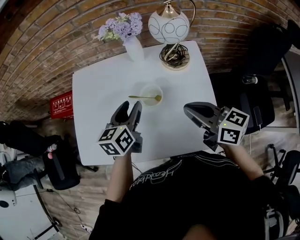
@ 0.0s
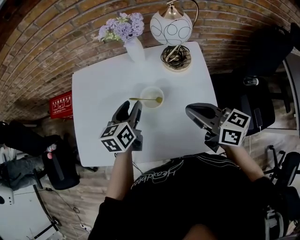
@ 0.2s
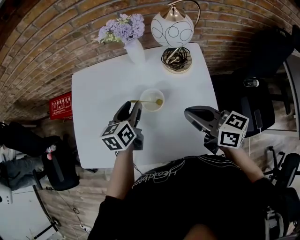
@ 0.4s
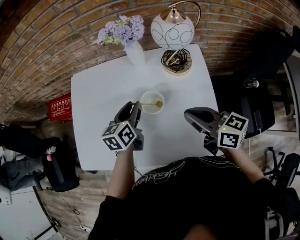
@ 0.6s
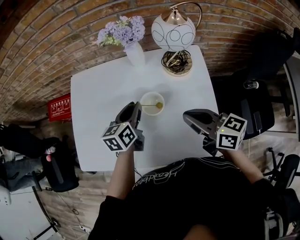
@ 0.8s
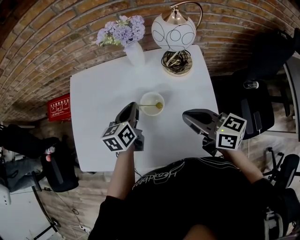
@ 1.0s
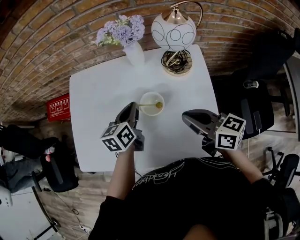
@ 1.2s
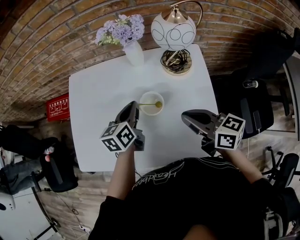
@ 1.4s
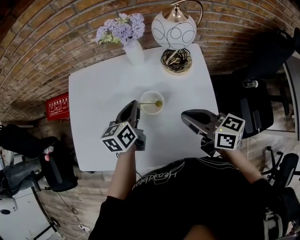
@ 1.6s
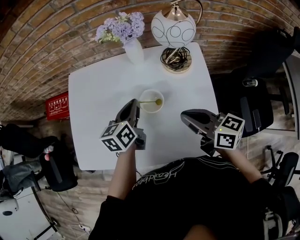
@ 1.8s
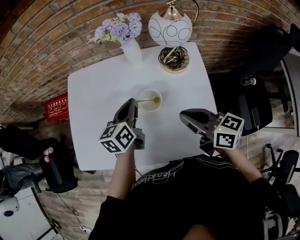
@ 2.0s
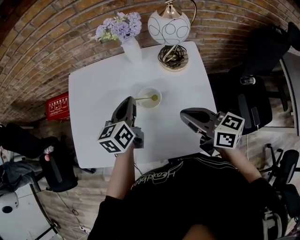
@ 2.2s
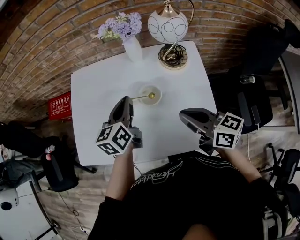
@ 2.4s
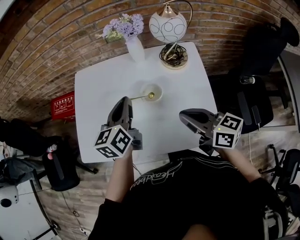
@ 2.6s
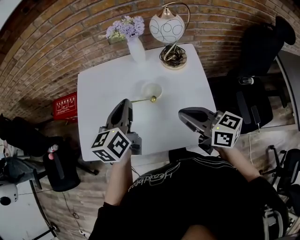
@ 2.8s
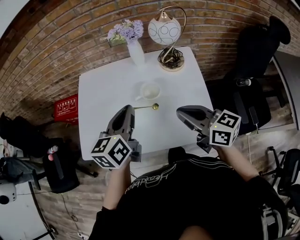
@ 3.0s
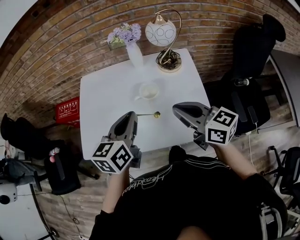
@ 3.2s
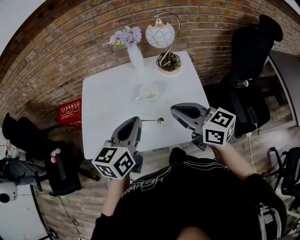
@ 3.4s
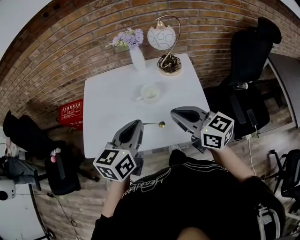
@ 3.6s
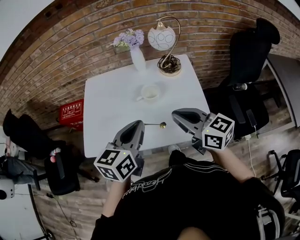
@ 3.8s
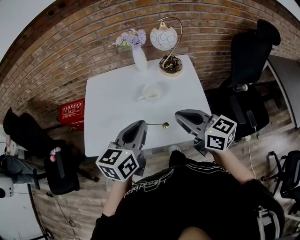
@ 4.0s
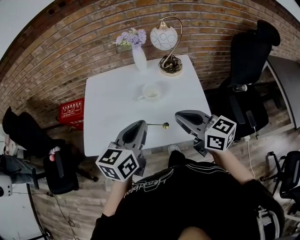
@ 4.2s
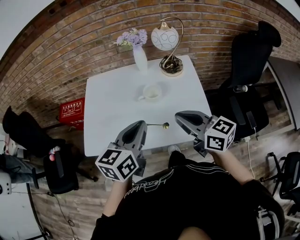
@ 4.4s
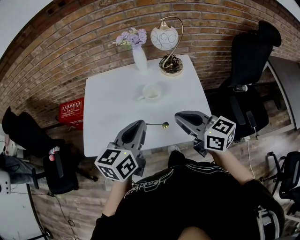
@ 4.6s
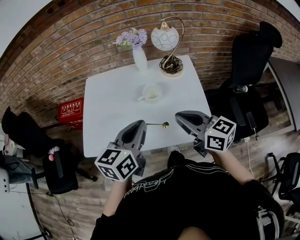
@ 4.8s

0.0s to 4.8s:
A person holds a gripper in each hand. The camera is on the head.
0.0s to 1.6s: The left gripper moves some 5 cm, and closes.
1.6s to 3.2s: The right gripper heads backward and upward, covering about 15 cm; the left gripper shifts roughly 20 cm backward and upward.
3.2s to 4.8s: The left gripper shifts some 5 cm backward.

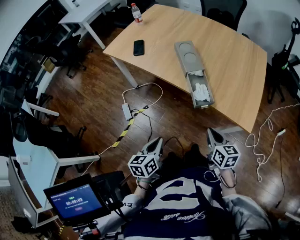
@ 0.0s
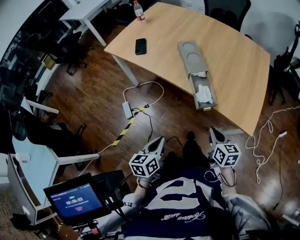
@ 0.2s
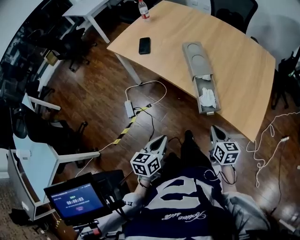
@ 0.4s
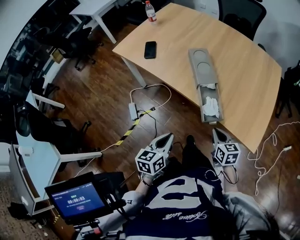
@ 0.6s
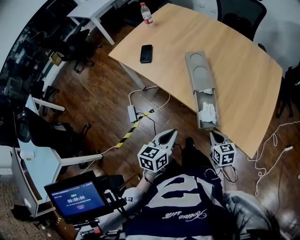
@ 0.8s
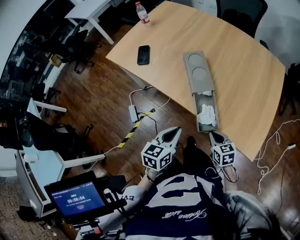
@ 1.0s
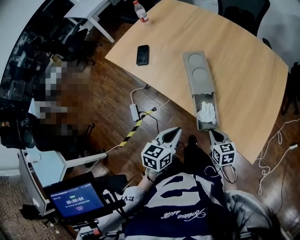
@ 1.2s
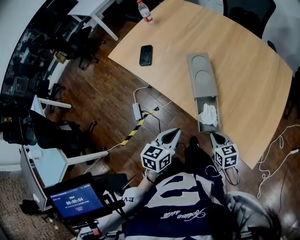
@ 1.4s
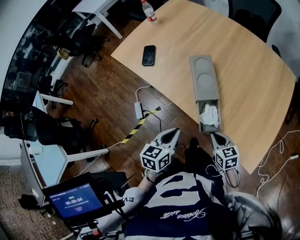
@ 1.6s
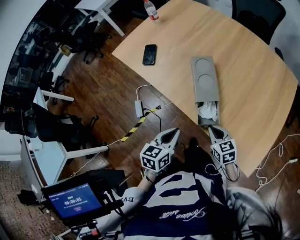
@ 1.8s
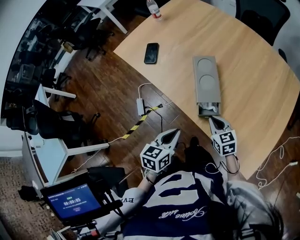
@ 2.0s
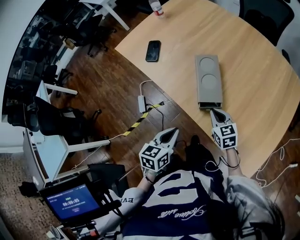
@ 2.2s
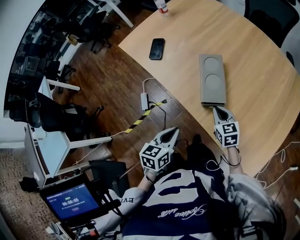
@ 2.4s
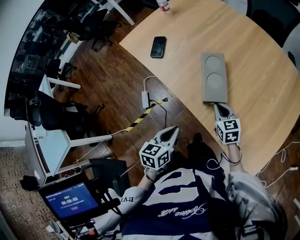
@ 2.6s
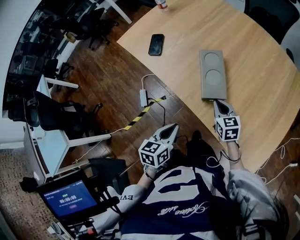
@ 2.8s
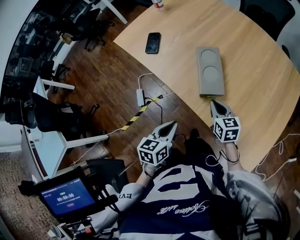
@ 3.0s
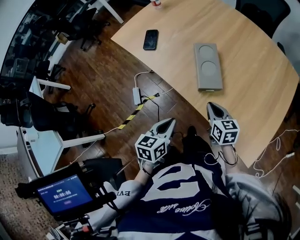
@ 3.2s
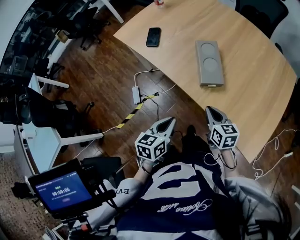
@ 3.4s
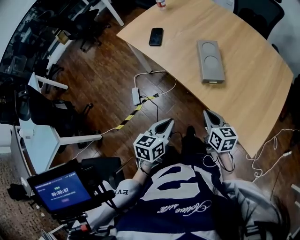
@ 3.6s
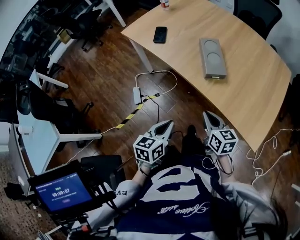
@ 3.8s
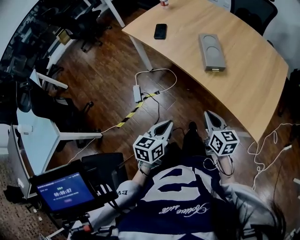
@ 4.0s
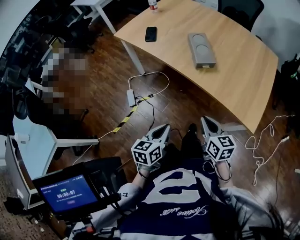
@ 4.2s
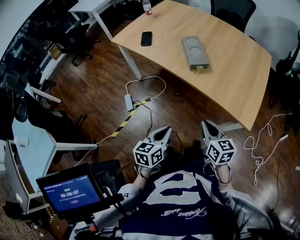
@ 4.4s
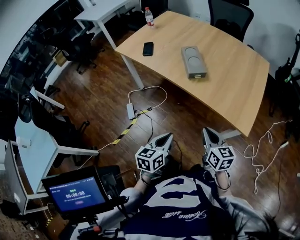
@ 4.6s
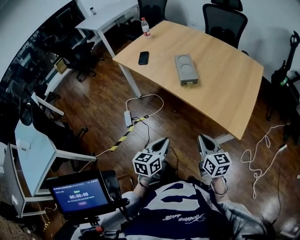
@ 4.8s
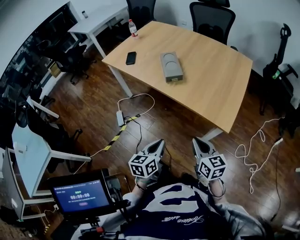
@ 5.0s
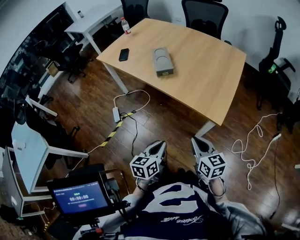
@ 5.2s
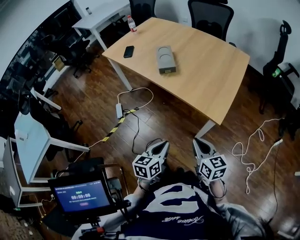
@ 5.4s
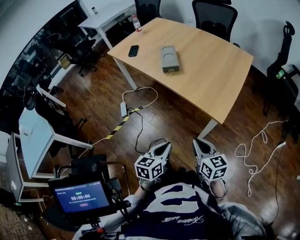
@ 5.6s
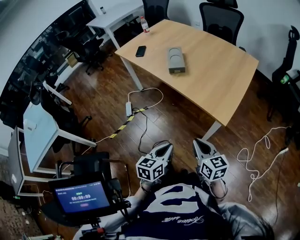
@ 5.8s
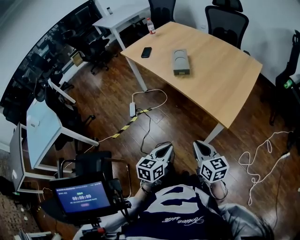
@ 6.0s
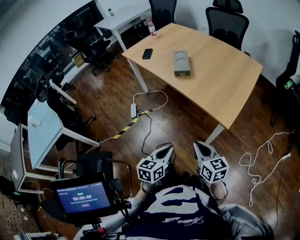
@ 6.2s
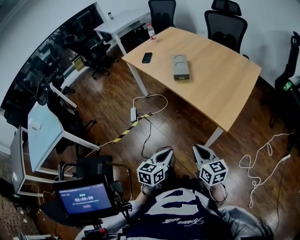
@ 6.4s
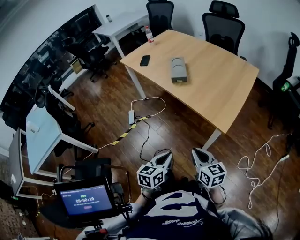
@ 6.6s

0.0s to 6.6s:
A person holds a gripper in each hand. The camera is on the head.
0.0s to 1.6s: The left gripper is displaced forward by about 25 cm; the right gripper heads forward and downward, covering approximately 20 cm, and swivels some 20 degrees.
1.6s to 3.2s: The right gripper travels forward by some 10 cm.
3.2s to 5.0s: The two grippers go approximately 35 cm backward.
5.0s to 6.6s: The right gripper heads backward, covering roughly 10 cm. Meanwhile the left gripper heads backward and to the right, covering some 15 cm.

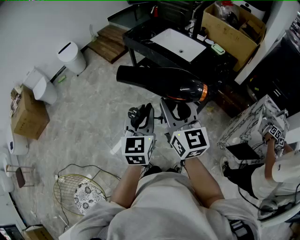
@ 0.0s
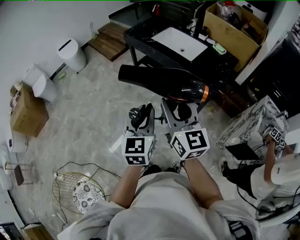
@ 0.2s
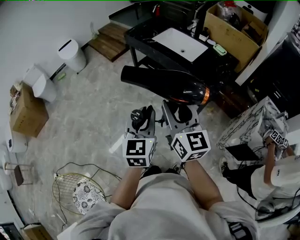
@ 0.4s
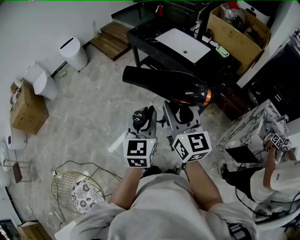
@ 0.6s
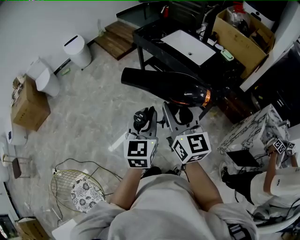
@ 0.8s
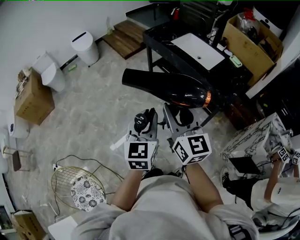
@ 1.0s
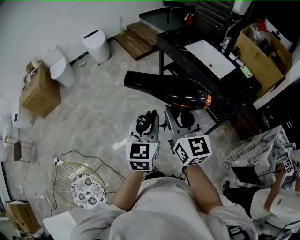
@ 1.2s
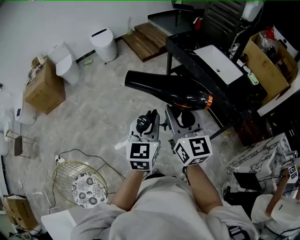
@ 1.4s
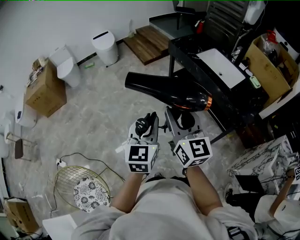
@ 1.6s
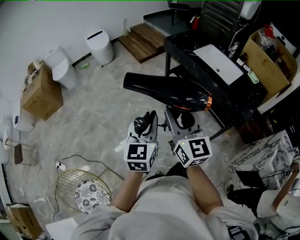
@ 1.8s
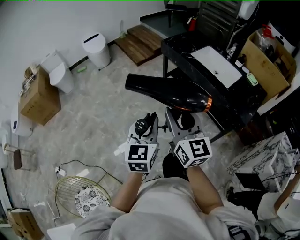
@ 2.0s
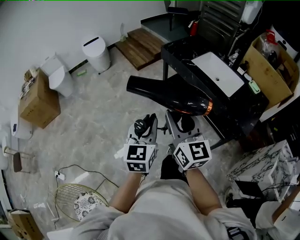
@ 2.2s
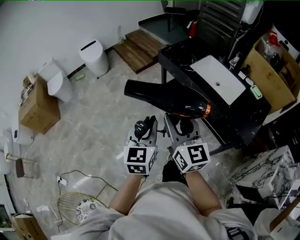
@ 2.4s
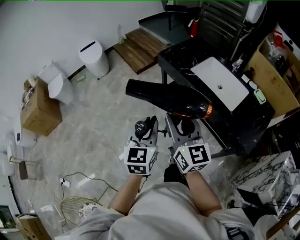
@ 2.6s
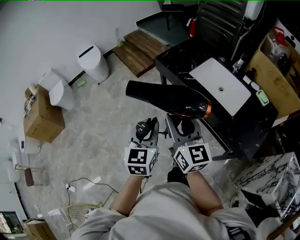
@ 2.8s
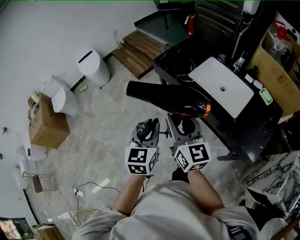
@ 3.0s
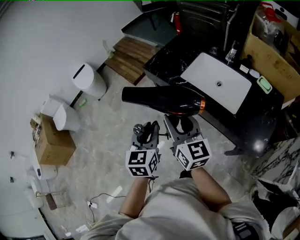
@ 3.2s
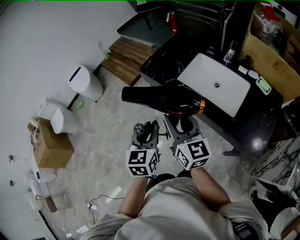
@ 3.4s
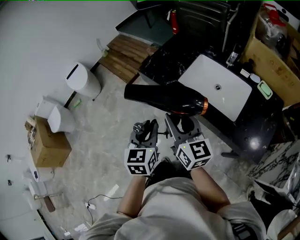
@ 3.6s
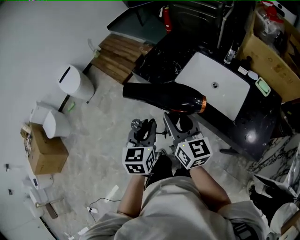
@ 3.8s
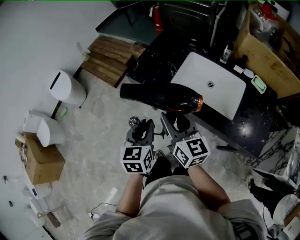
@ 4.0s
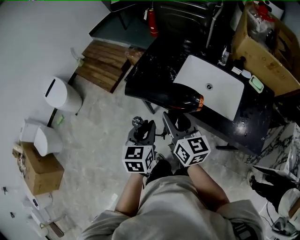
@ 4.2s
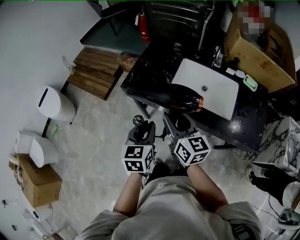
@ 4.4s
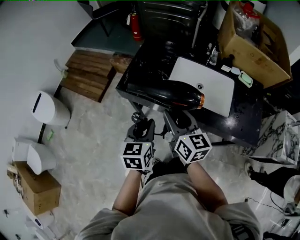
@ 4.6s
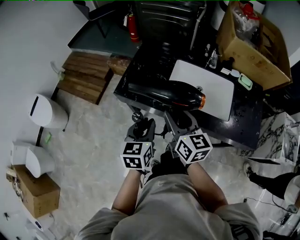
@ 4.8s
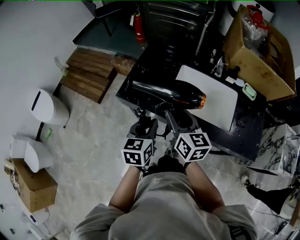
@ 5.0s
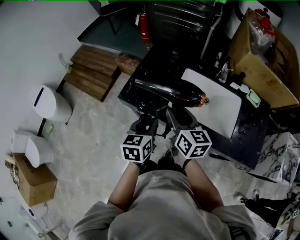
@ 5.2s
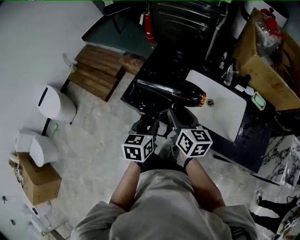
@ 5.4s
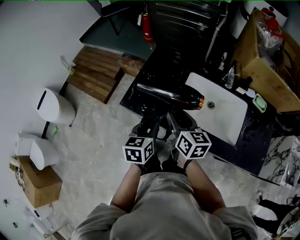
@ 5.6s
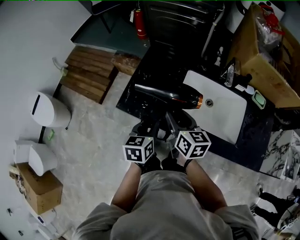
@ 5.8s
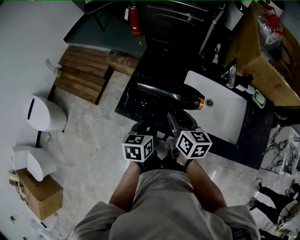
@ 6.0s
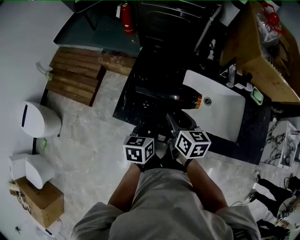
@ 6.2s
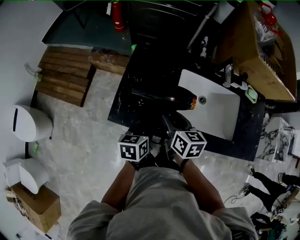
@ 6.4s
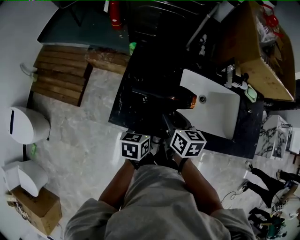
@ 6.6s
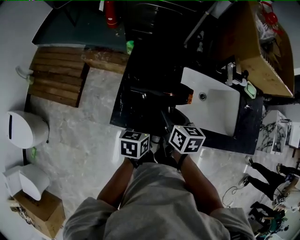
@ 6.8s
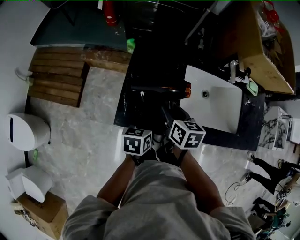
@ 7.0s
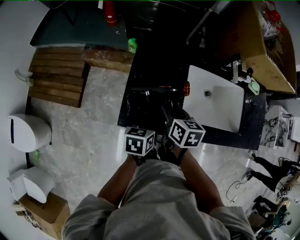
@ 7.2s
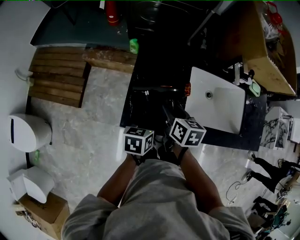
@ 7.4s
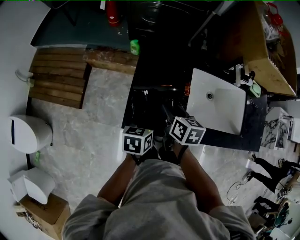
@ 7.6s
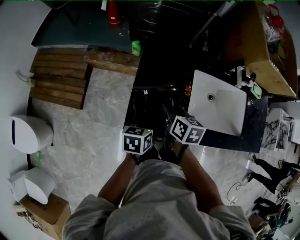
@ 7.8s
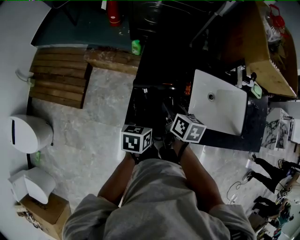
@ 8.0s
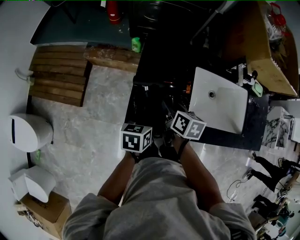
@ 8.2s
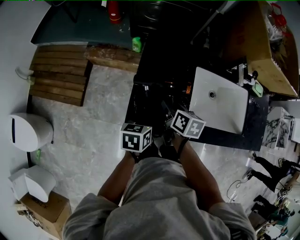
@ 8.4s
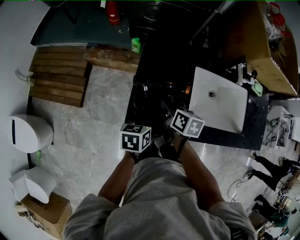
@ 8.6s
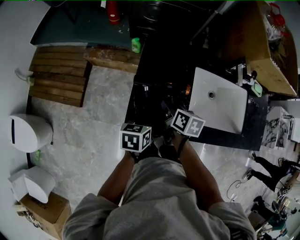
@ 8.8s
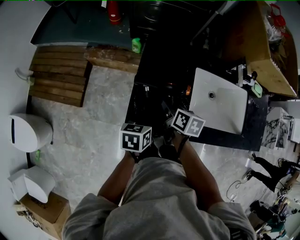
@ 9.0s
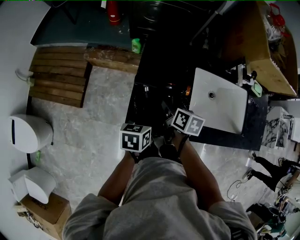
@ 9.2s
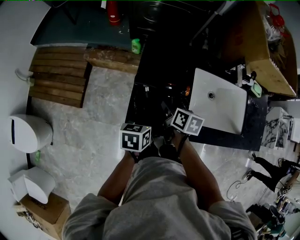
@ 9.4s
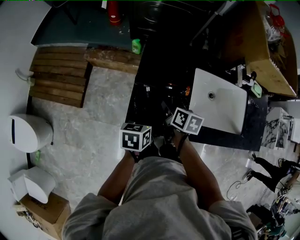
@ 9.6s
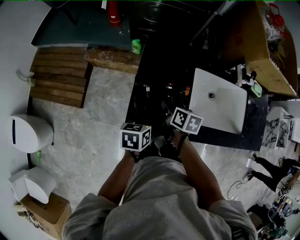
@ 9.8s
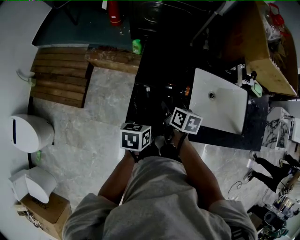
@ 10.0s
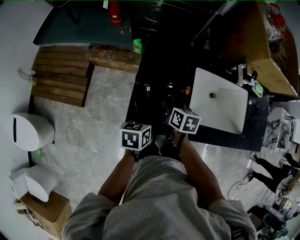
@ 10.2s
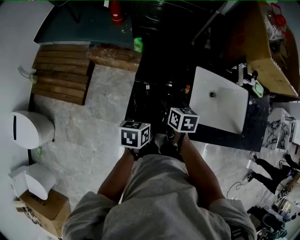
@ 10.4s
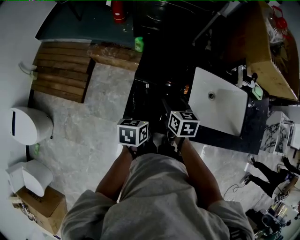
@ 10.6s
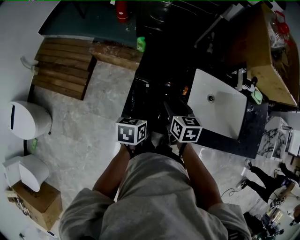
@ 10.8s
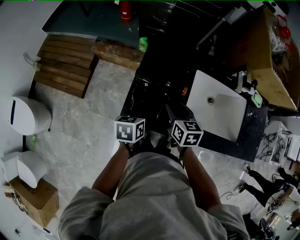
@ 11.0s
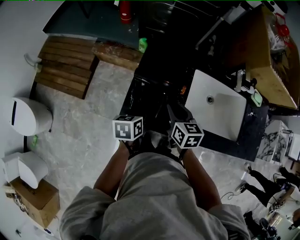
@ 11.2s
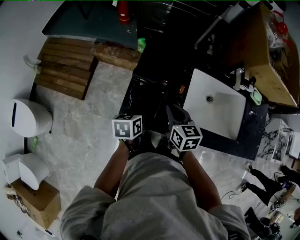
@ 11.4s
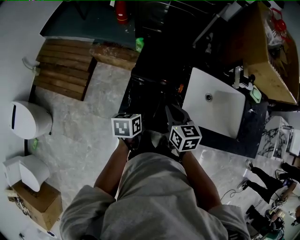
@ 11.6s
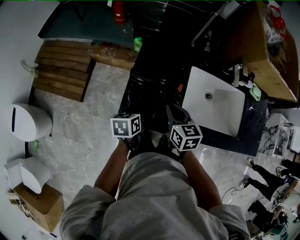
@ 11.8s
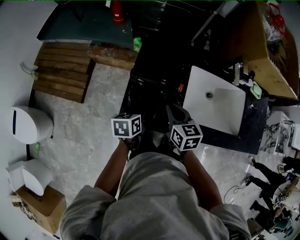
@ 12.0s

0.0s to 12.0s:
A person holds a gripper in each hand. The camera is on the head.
0.0s to 1.6s: Both grippers travel together to the left, approximately 20 cm.
1.6s to 3.0s: The grippers both shift forward by some 35 cm.
3.0s to 4.4s: Both grippers move forward, roughly 20 cm. The left gripper turns by roughly 20 degrees; the right gripper swivels approximately 20 degrees.
4.4s to 6.0s: Both grippers travel together forward and downward, about 20 cm.
6.0s to 7.6s: Both grippers travel together to the left, downward and forward, approximately 15 cm. The left gripper swivels approximately 20 degrees. The right gripper rotates about 20 degrees.
7.6s to 10.4s: The grippers stay close to where they were, moving slightly.
10.4s to 12.0s: The right gripper moves upward, roughly 5 cm, and closes.
